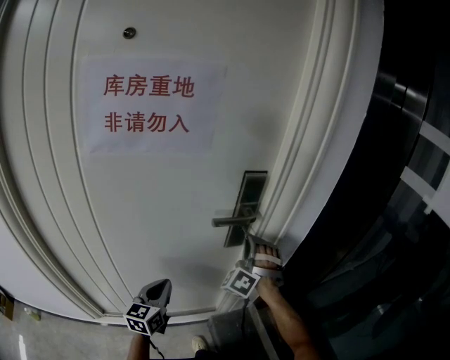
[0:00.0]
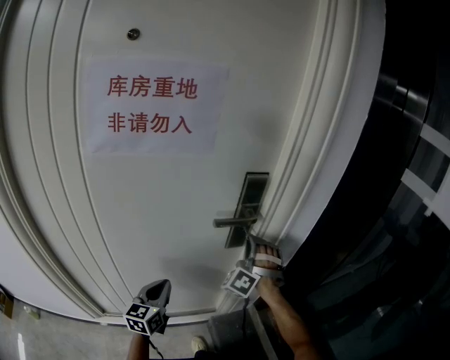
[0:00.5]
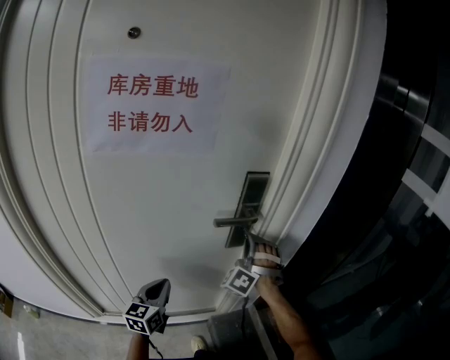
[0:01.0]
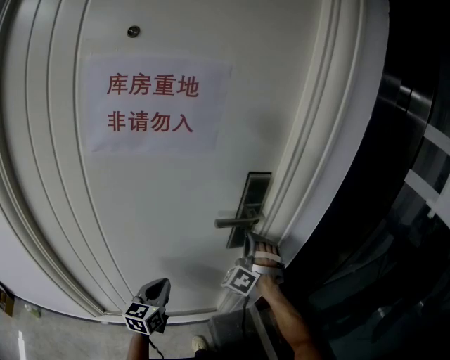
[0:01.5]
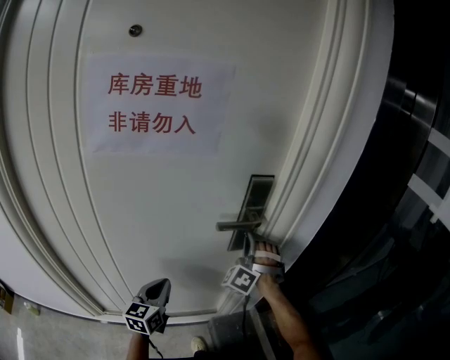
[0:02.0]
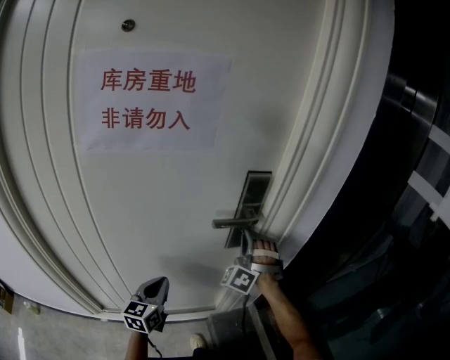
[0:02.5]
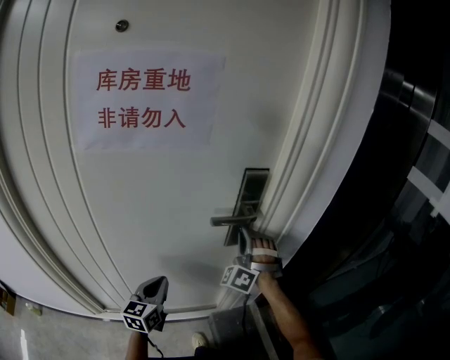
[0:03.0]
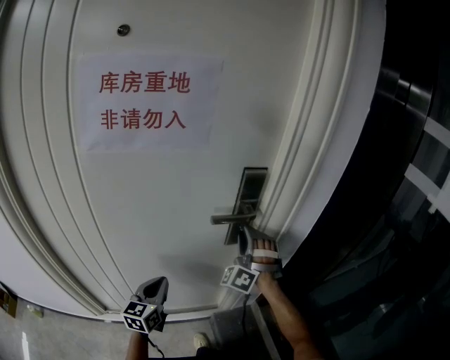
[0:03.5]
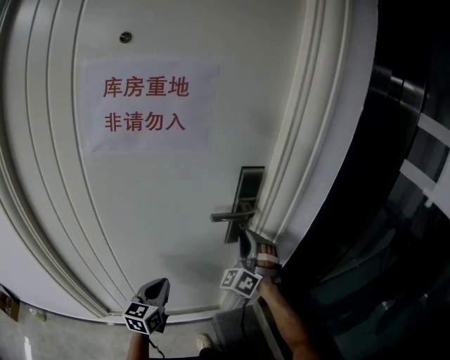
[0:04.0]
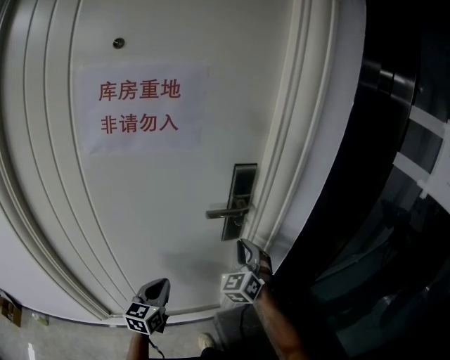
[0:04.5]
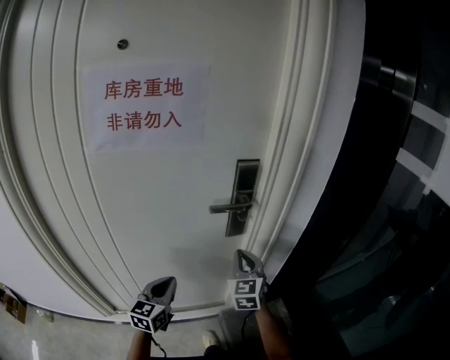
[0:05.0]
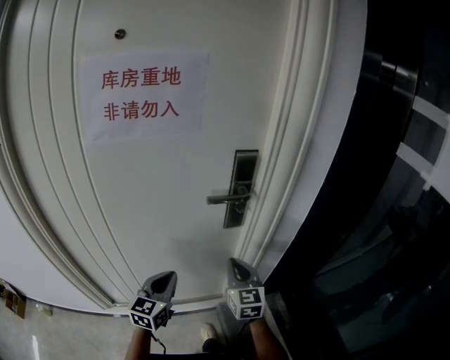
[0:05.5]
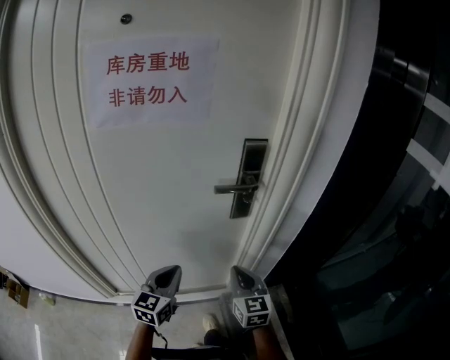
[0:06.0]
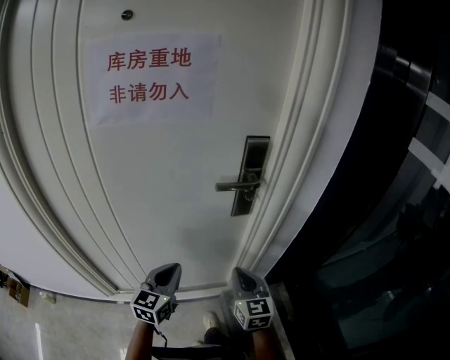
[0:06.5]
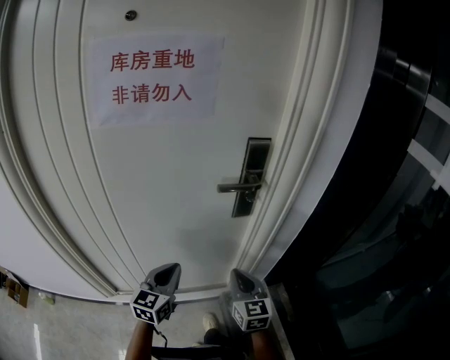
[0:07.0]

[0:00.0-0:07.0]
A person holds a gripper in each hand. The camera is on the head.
0:00.0 to 0:02.0: The grippers stay close to where they were, moving slightly.
0:02.0 to 0:03.5: The right gripper opens.
0:03.5 to 0:05.0: The right gripper goes some 10 cm backward, twists approximately 60 degrees clockwise, seen from behind, and closes its fingers.
0:05.0 to 0:07.0: The right gripper shifts approximately 10 cm backward and downward, and swivels approximately 20 degrees.

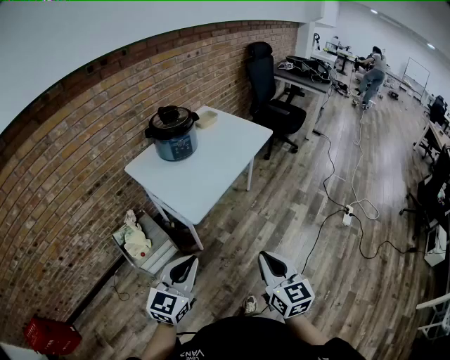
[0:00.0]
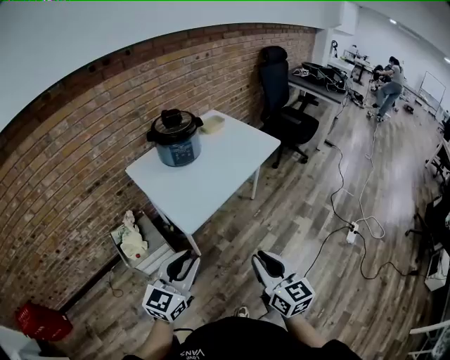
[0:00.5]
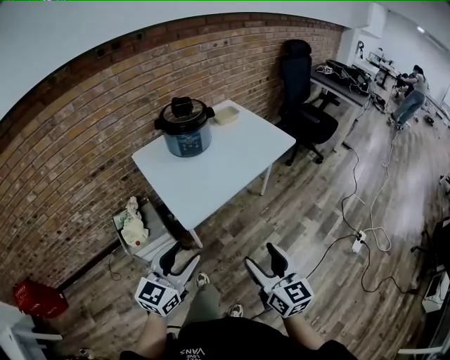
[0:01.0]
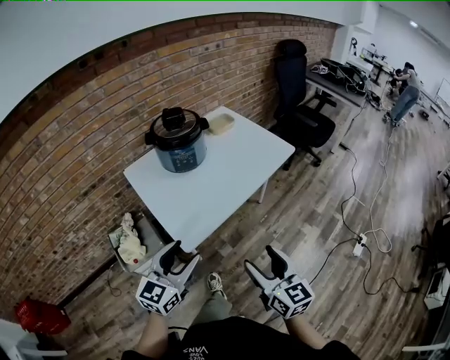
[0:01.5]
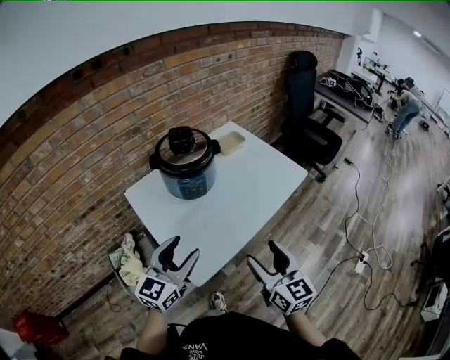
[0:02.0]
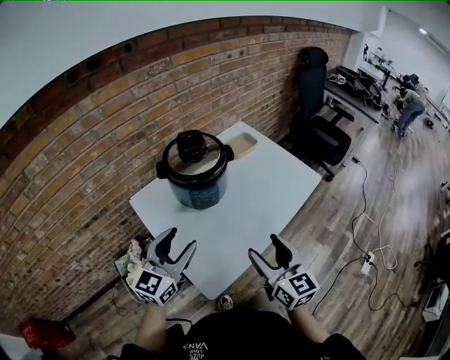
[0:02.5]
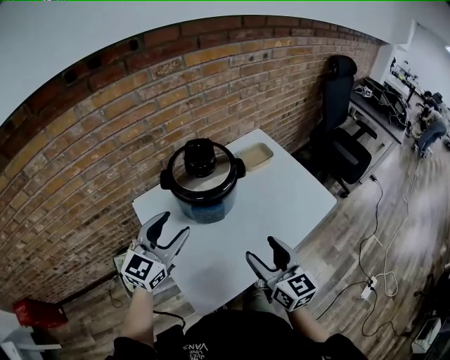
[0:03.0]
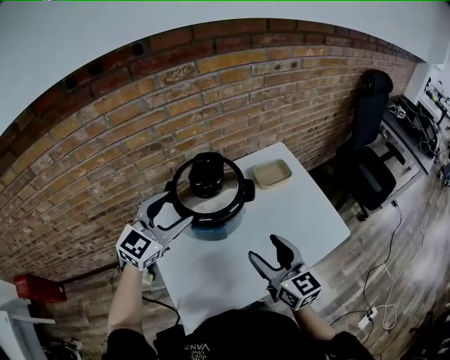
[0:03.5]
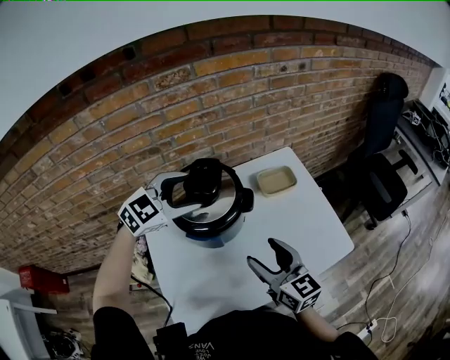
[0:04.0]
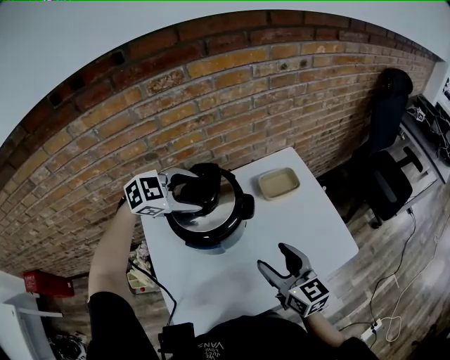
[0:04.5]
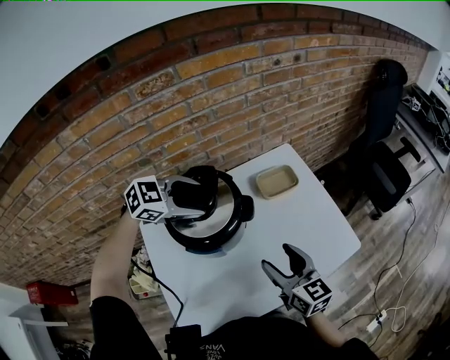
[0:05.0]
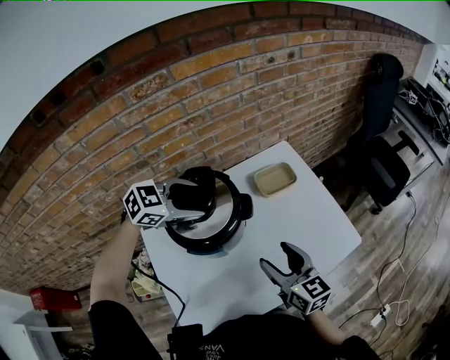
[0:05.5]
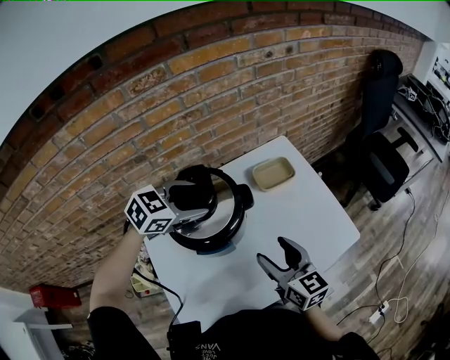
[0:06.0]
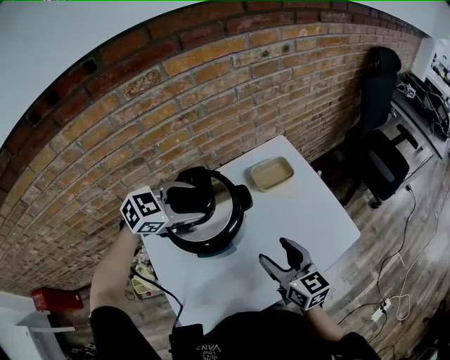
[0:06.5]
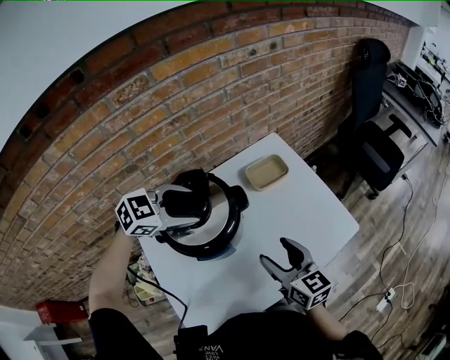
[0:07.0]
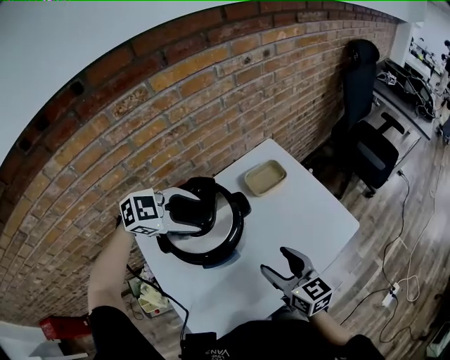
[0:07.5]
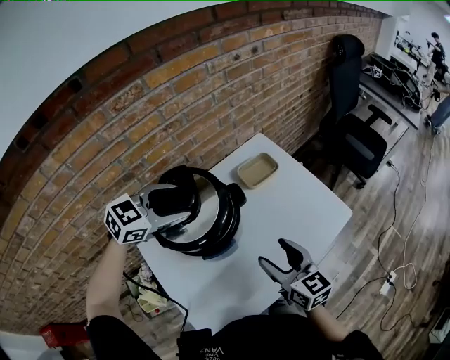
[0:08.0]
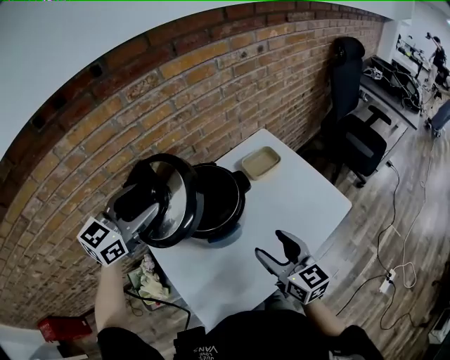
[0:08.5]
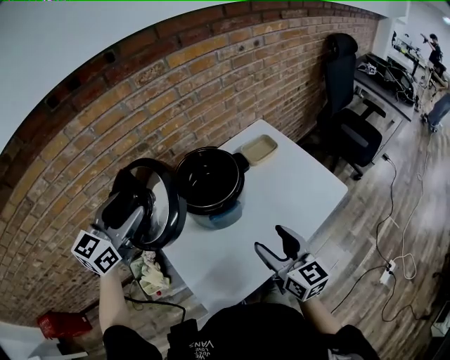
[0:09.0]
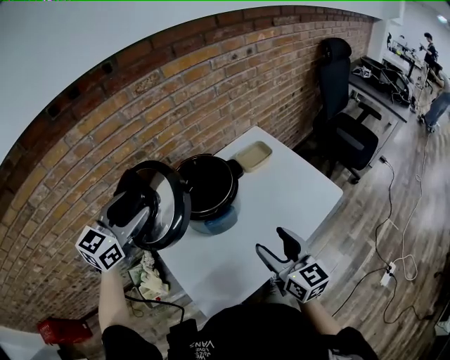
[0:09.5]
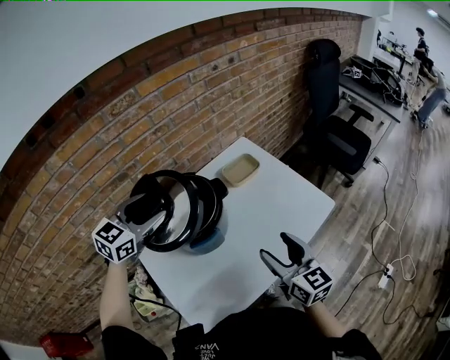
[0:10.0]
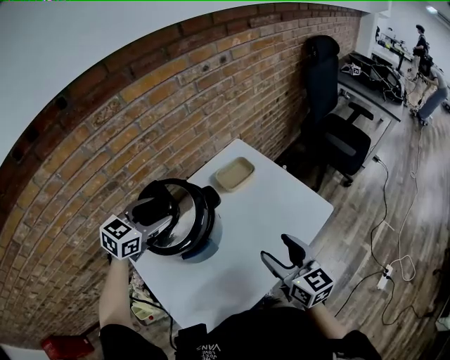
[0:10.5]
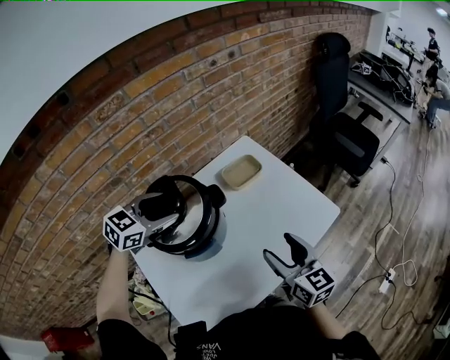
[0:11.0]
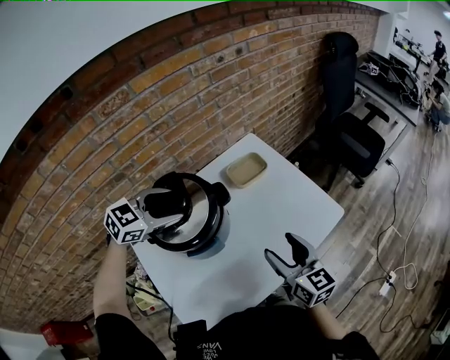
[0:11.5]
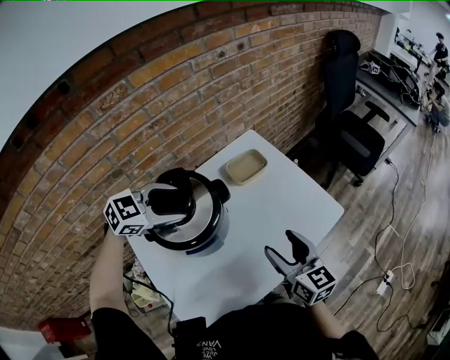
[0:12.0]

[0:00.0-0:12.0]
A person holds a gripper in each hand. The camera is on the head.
0:00.0 to 0:02.0: The two grippers go about 30 cm forward. The right gripper opens its fingers; the left gripper opens.
0:02.0 to 0:04.0: Both grippers move forward, approximately 35 cm. The left gripper changes its angle by roughly 40 degrees. The right gripper turns by some 30 degrees.
0:04.0 to 0:06.0: The left gripper changes place by approximately 5 cm, and turns by about 20 degrees.
0:06.0 to 0:08.0: The left gripper changes place by approximately 5 cm.
0:08.0 to 0:10.0: The right gripper shifts by roughly 5 cm, while the left gripper moves about 15 cm backward and comes back, and rotates roughly 20 degrees.
0:10.0 to 0:12.0: The left gripper travels to the right and downward by roughly 10 cm, and changes its angle by some 30 degrees; the right gripper is displaced forward by about 5 cm.

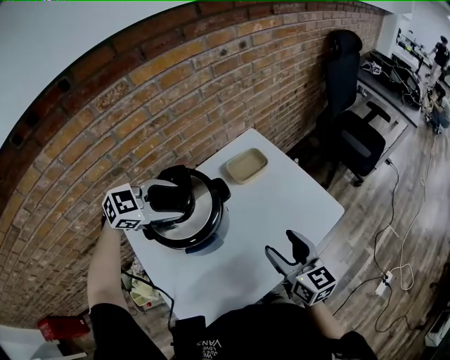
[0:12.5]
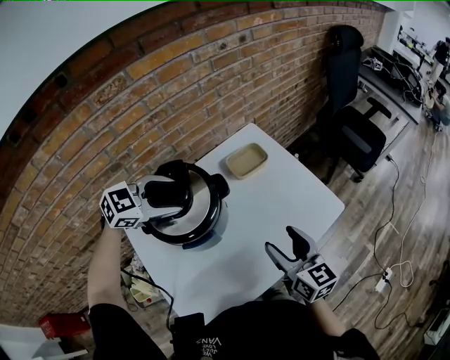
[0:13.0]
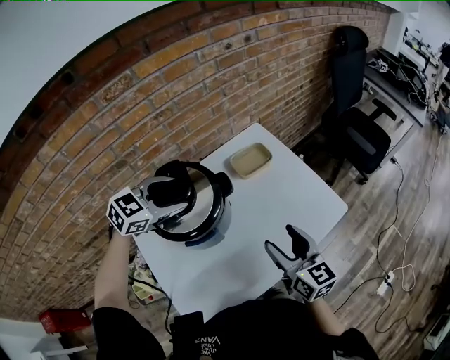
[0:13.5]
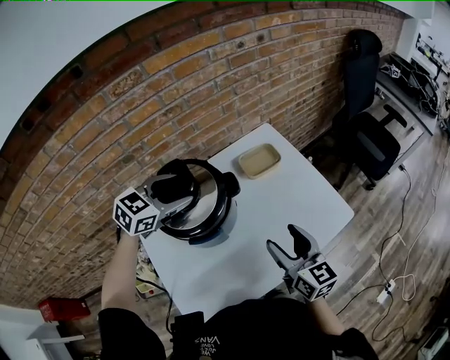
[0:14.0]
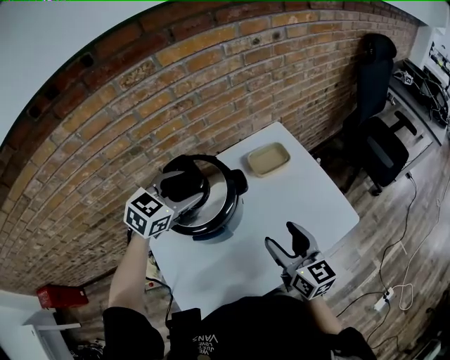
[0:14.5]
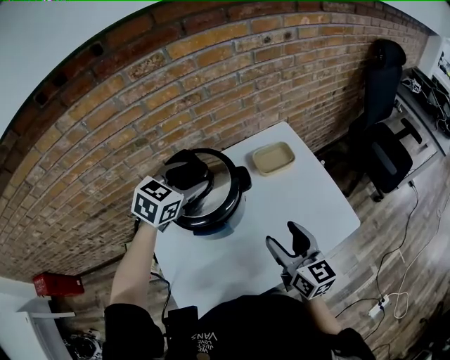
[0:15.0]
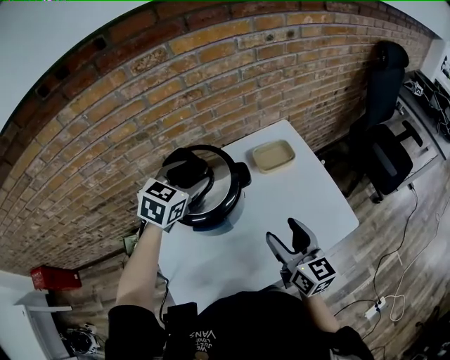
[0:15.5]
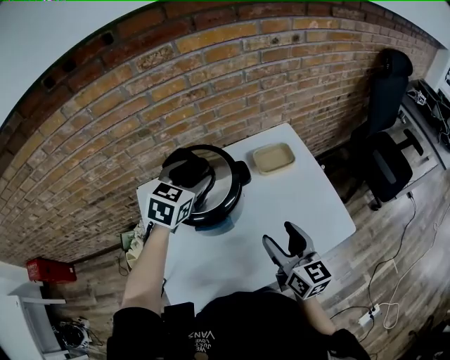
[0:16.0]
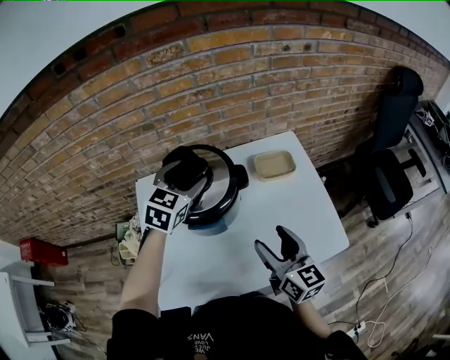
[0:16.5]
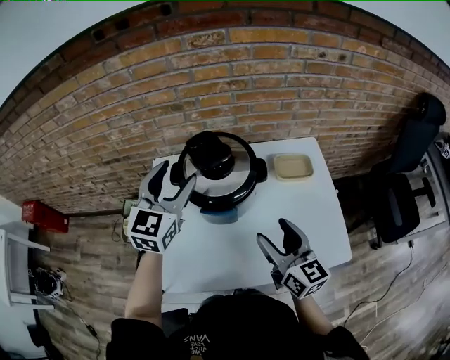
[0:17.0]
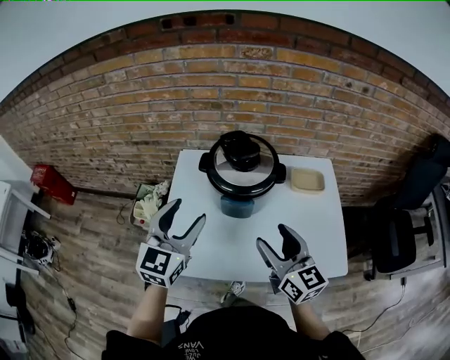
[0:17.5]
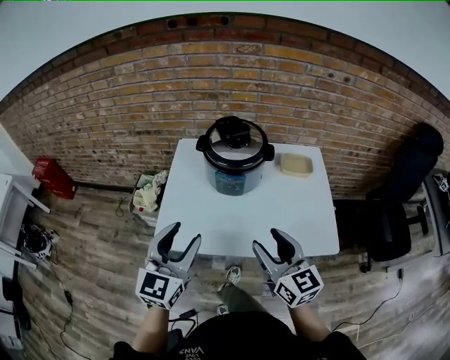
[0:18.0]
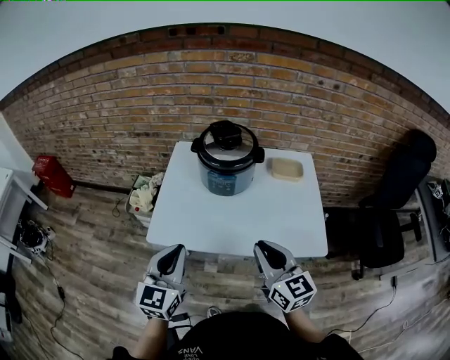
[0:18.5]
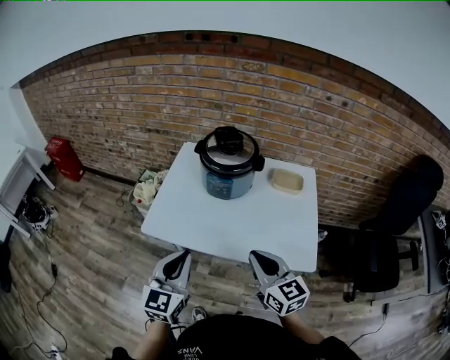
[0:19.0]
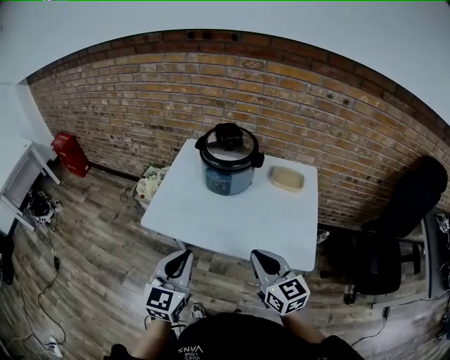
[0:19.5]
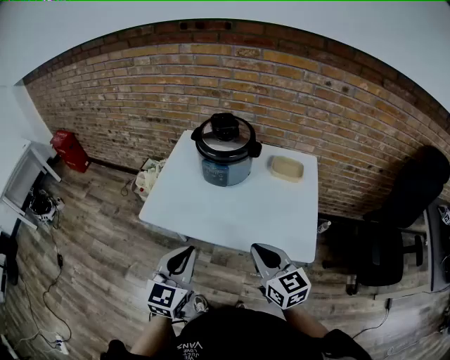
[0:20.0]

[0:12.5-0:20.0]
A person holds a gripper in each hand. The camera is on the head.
0:12.5 to 0:14.5: The left gripper swivels roughly 30 degrees.
0:14.5 to 0:16.5: The left gripper swivels about 30 degrees.
0:16.5 to 0:18.0: The left gripper travels backward by some 35 cm, and turns by some 30 degrees. Meanwhile the right gripper shifts roughly 15 cm backward, and rotates approximately 20 degrees.
0:18.0 to 0:20.0: The right gripper heads to the right and backward, covering some 10 cm, and closes its fingers. The left gripper goes roughly 15 cm backward, to the right and downward, and closes up.
